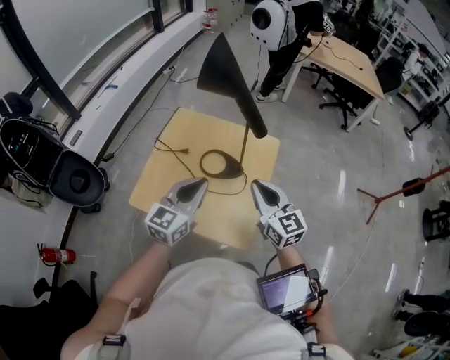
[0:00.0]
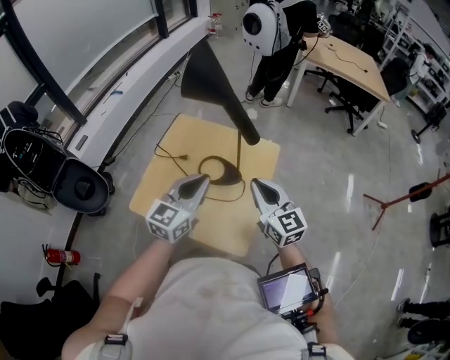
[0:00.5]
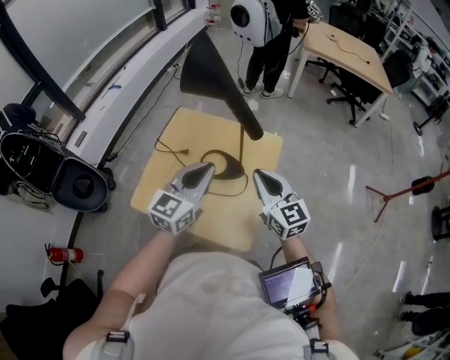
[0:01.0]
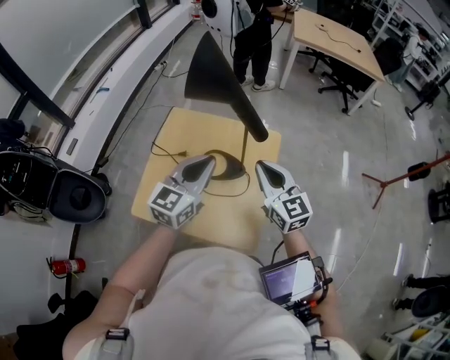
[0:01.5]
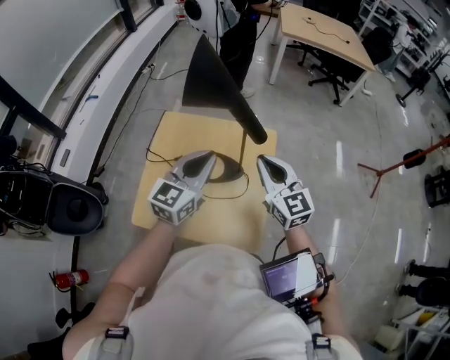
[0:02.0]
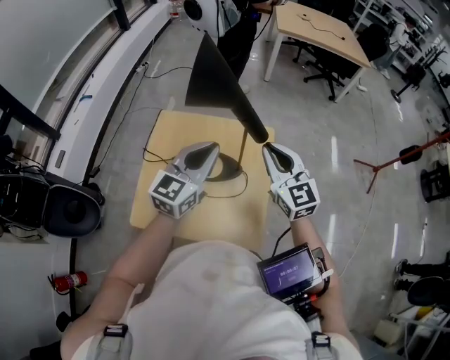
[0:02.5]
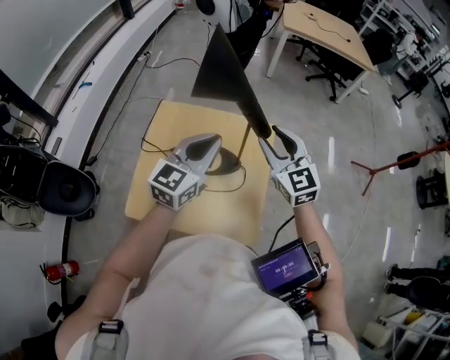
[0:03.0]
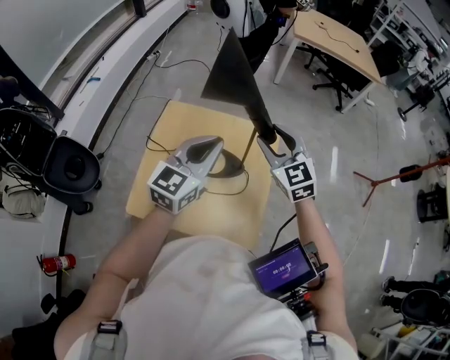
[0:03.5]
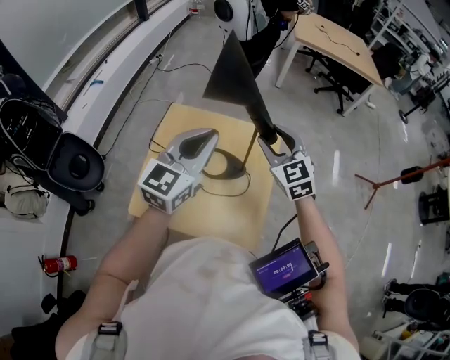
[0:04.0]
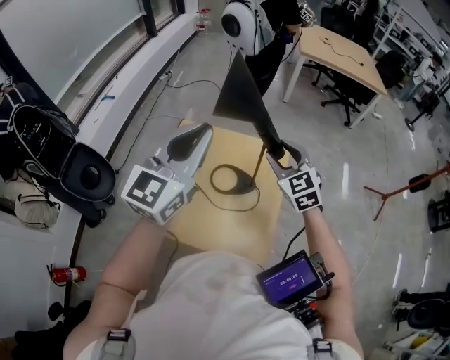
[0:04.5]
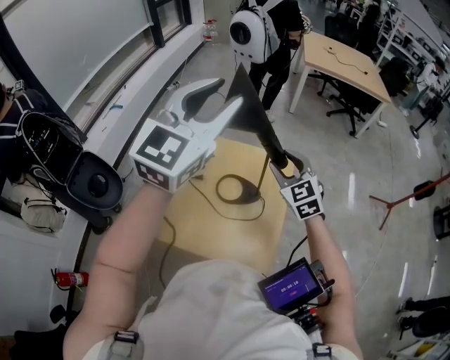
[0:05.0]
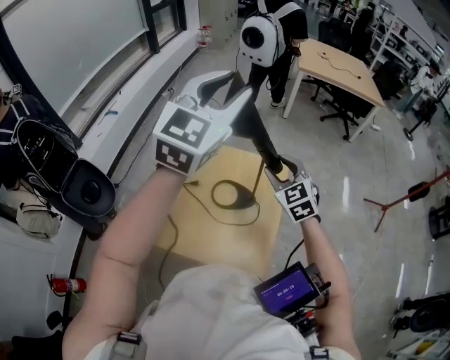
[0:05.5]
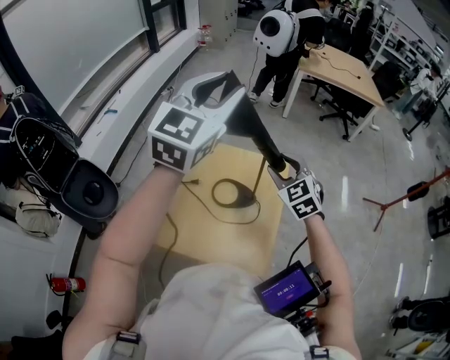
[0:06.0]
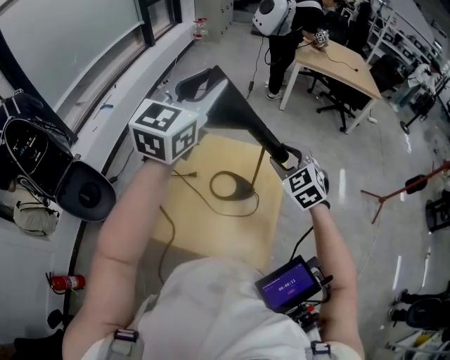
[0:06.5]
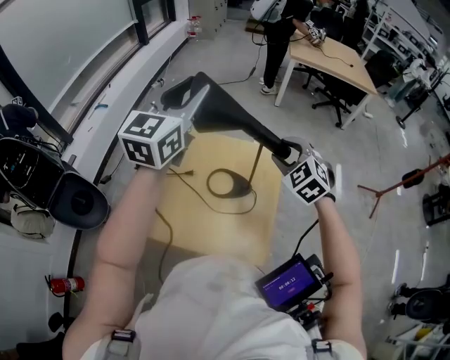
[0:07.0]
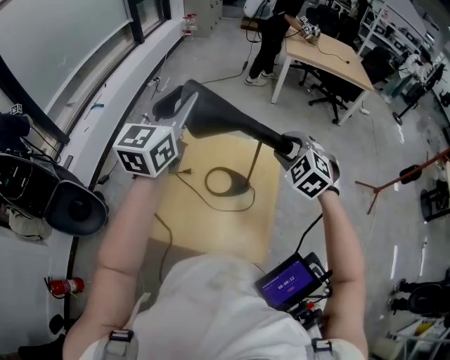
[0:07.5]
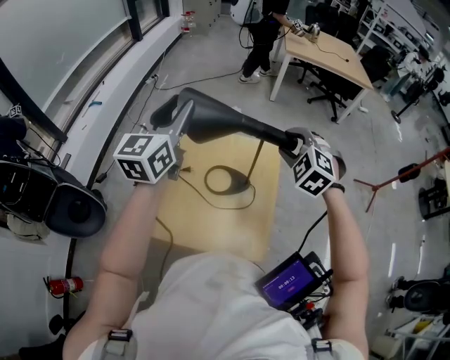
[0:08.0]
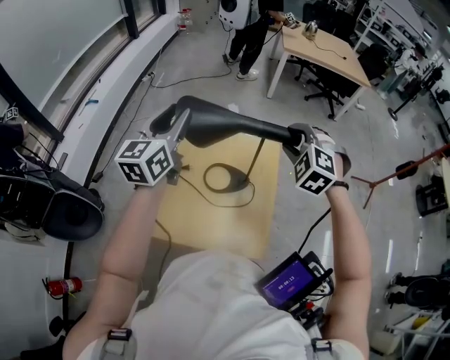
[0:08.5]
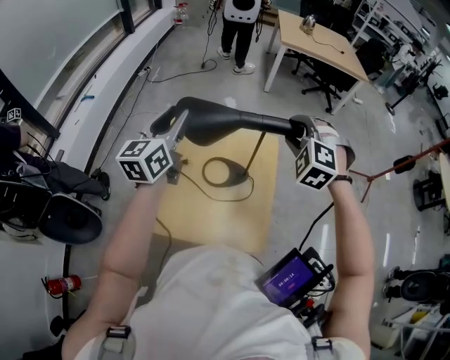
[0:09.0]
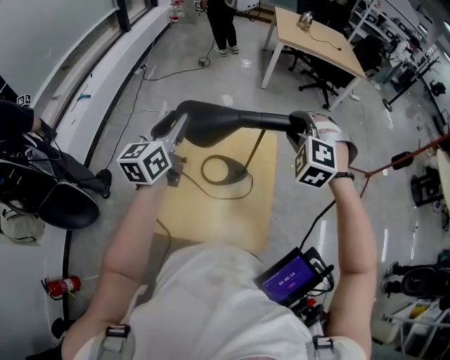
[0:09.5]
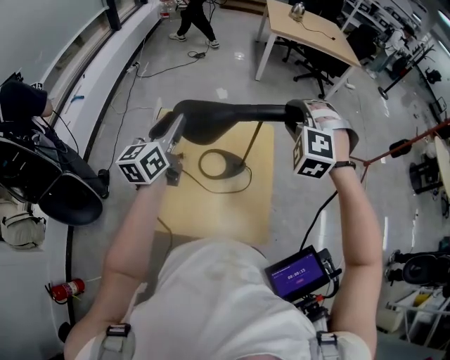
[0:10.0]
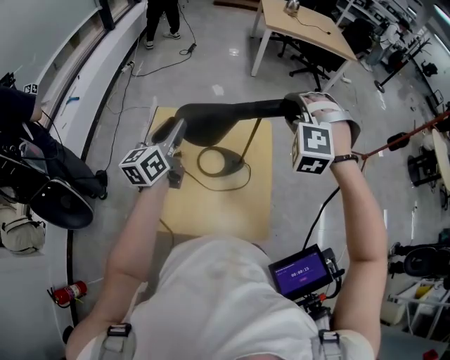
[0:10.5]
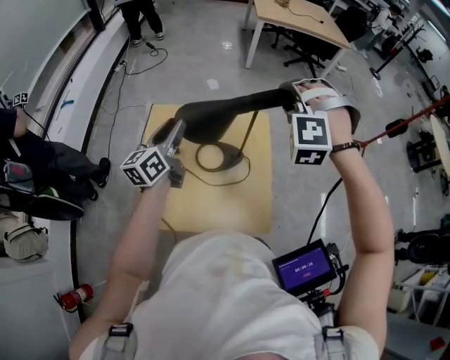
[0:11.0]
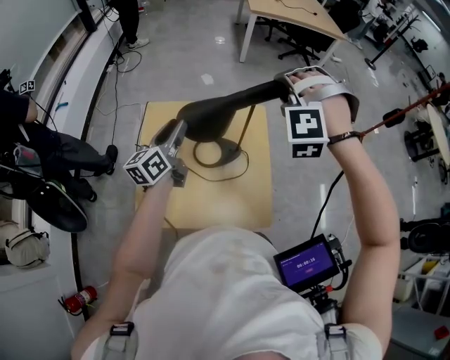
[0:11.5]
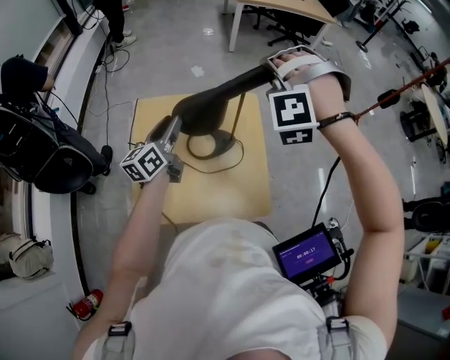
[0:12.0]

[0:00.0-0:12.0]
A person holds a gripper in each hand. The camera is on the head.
0:00.0 to 0:02.0: Both grippers travel together forward, roughly 10 cm.
0:02.0 to 0:04.0: The right gripper shifts roughly 5 cm forward, turns by some 20 degrees, and opens up; the left gripper heads upward, covering some 5 cm.
0:04.0 to 0:06.0: The left gripper is displaced upward by some 20 cm, and opens.
0:06.0 to 0:08.0: The right gripper turns by about 30 degrees, while the left gripper is displaced downward and to the left by approximately 15 cm, and turns by approximately 30 degrees.
0:08.0 to 0:10.0: The right gripper swivels approximately 30 degrees; the left gripper heads downward, covering some 10 cm.
0:10.0 to 0:12.0: The right gripper changes its angle by some 20 degrees. The left gripper heads downward, covering approximately 10 cm.

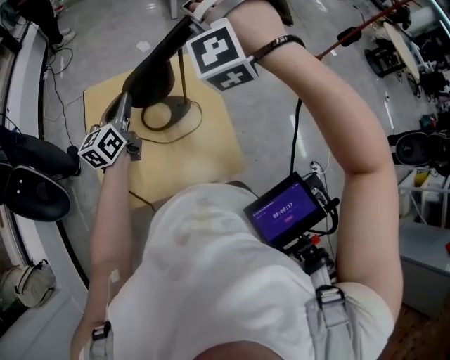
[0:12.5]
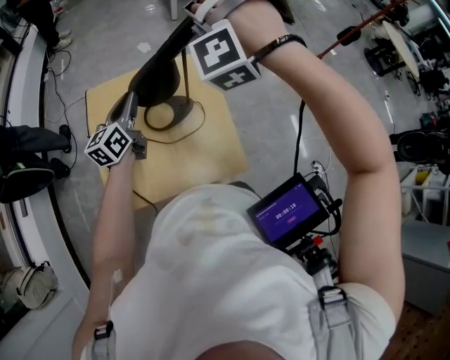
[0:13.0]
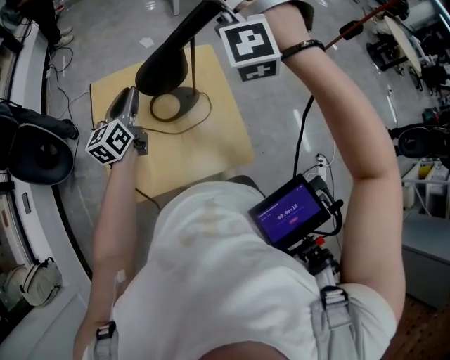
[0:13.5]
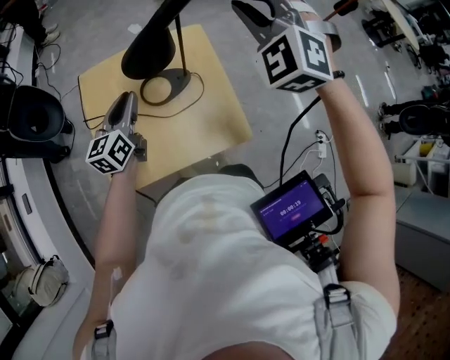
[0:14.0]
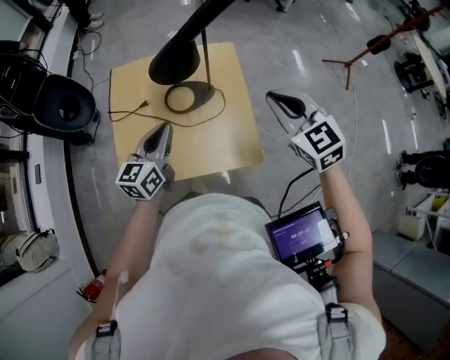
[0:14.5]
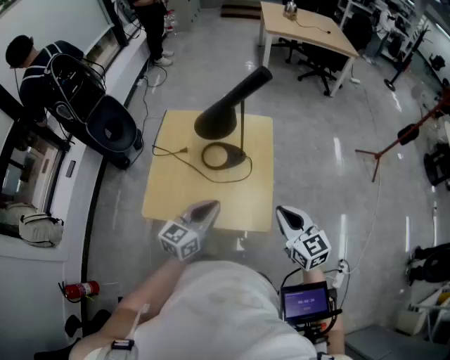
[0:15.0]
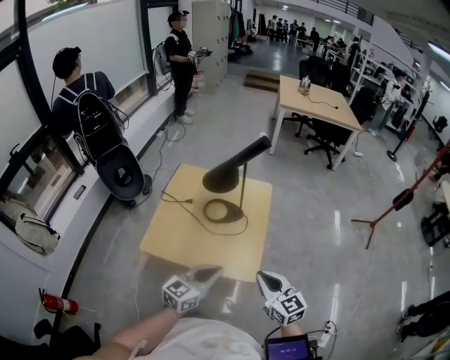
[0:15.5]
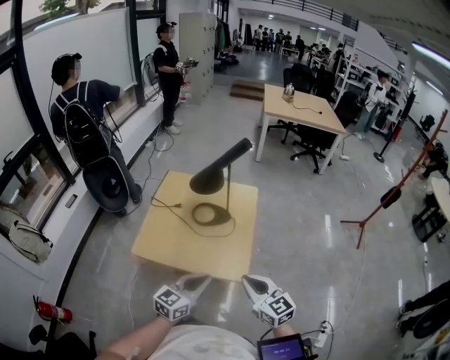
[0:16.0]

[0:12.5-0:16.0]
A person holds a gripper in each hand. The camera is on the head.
0:12.5 to 0:14.5: The left gripper travels backward and to the right by approximately 20 cm. Meanwhile the right gripper heads to the right, backward and downward, covering roughly 25 cm, twists some 90 degrees clockwise, seen from behind, and closes.
0:14.5 to 0:16.0: The left gripper shifts some 25 cm backward and to the right; the right gripper travels backward by some 20 cm, and swivels some 30 degrees.

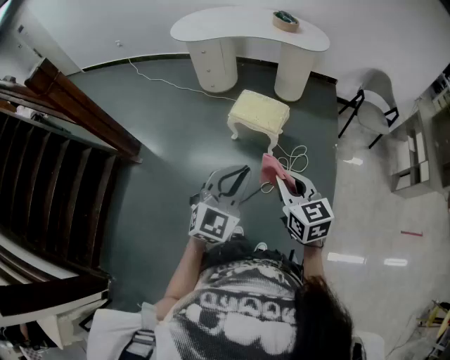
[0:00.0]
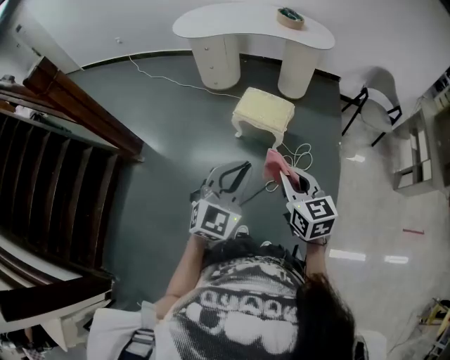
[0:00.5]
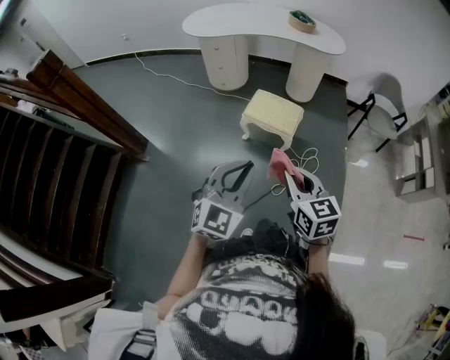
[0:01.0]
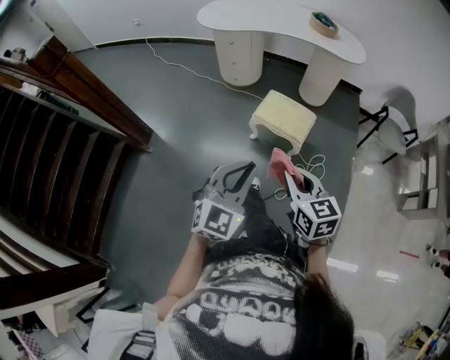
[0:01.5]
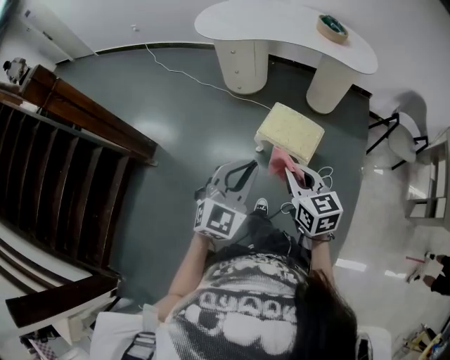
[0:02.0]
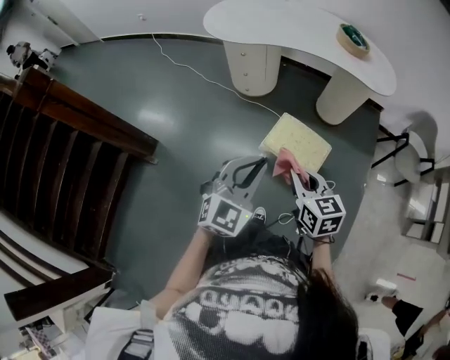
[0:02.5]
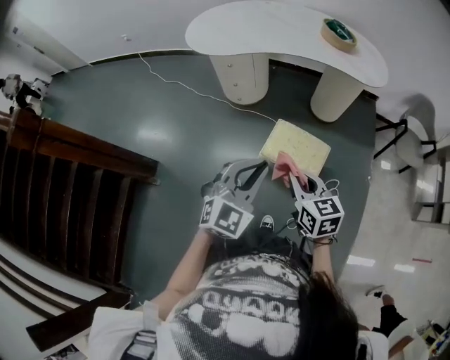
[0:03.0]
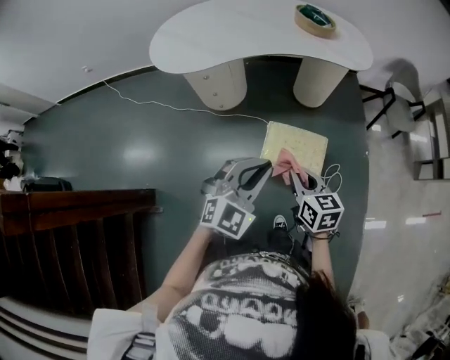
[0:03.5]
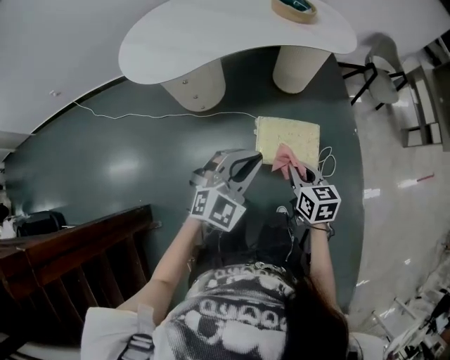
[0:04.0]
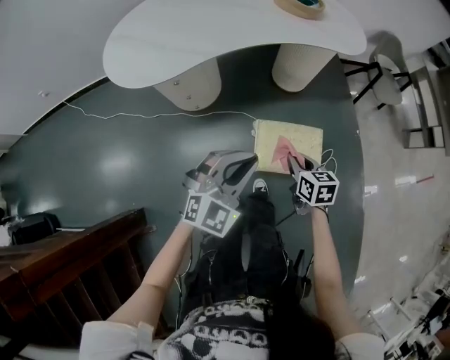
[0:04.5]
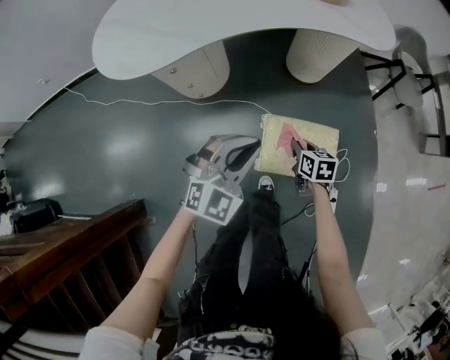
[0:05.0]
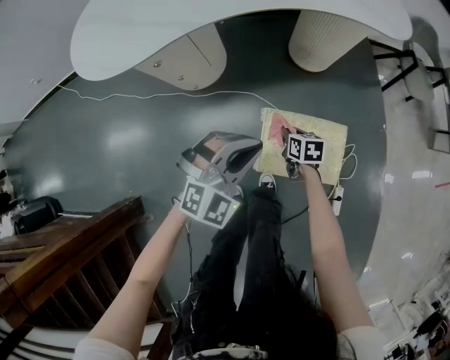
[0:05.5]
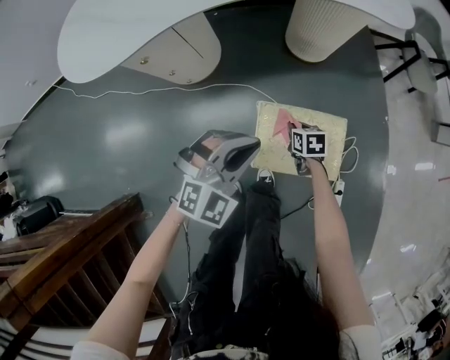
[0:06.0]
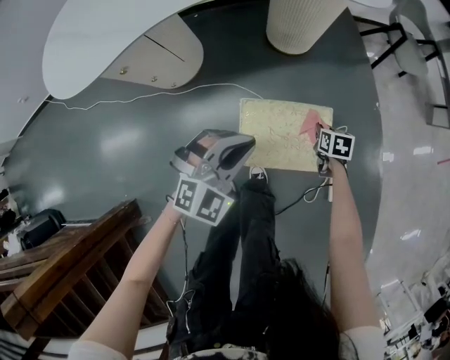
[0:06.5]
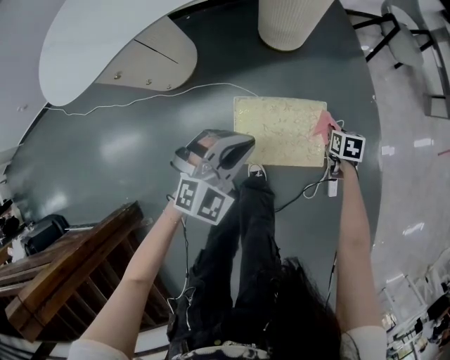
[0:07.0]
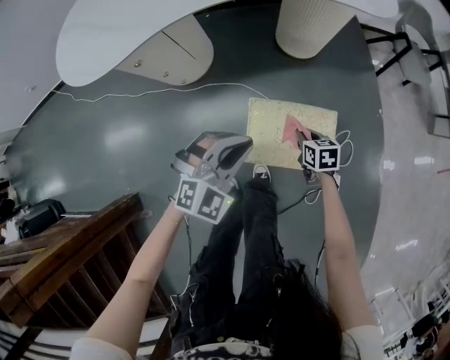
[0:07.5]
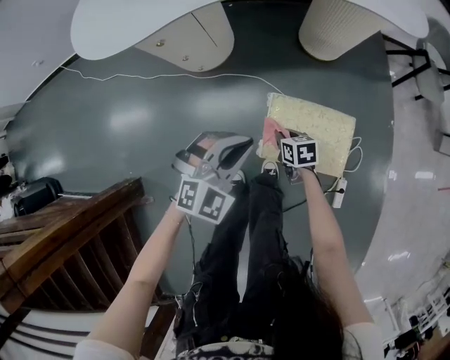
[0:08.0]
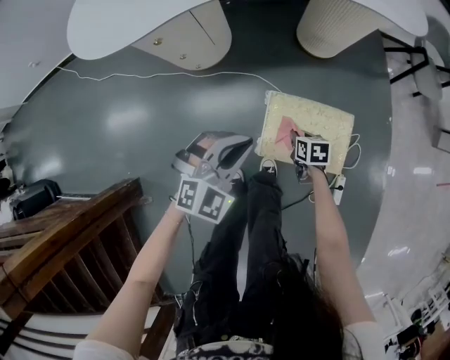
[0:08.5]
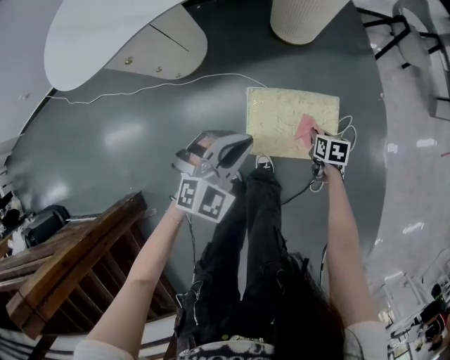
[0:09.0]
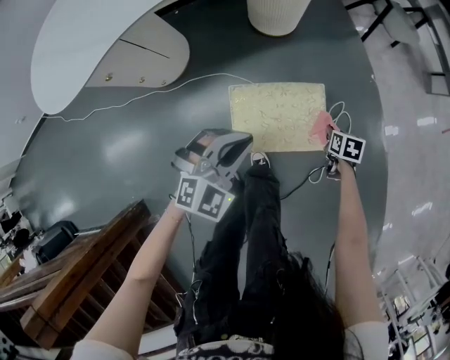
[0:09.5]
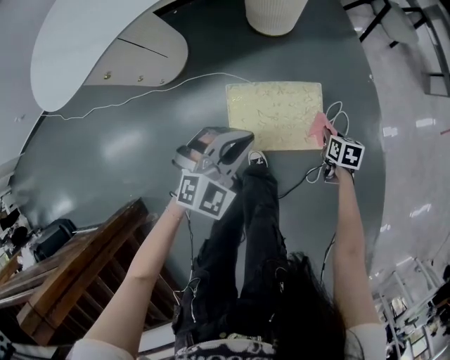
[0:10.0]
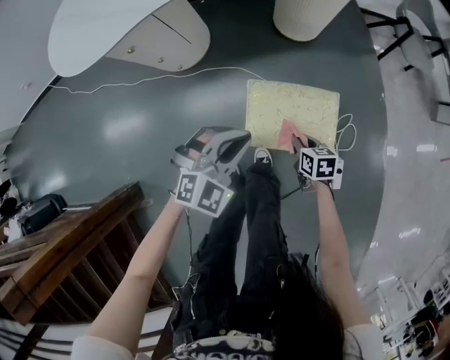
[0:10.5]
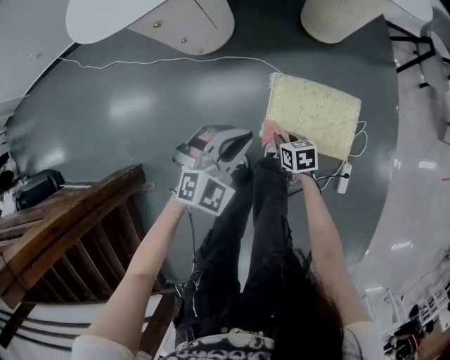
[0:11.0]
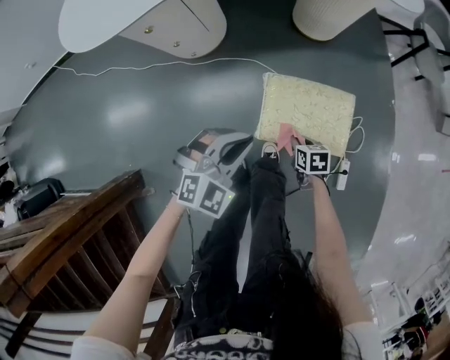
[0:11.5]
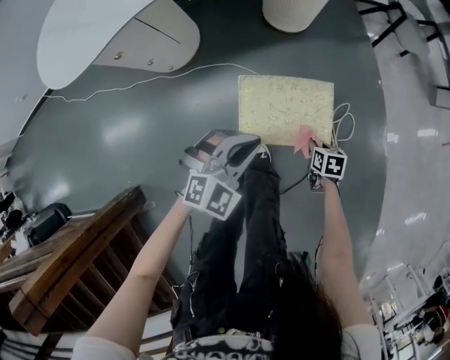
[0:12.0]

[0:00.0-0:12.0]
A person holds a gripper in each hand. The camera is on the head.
0:00.0 to 0:02.0: Both grippers move forward and to the left, approximately 30 cm.
0:02.0 to 0:04.0: The right gripper changes place by approximately 30 cm, and swivels some 40 degrees; the left gripper changes place by roughly 35 cm, and rotates roughly 40 degrees.
0:04.0 to 0:06.0: The right gripper heads downward and forward, covering some 50 cm, and swivels roughly 30 degrees. Meanwhile the left gripper is displaced downward and forward by some 30 cm.
0:06.0 to 0:08.0: The left gripper changes place by about 5 cm.
0:08.0 to 0:10.0: The left gripper shifts by some 15 cm, while the right gripper shifts by roughly 30 cm, and swivels some 30 degrees.
